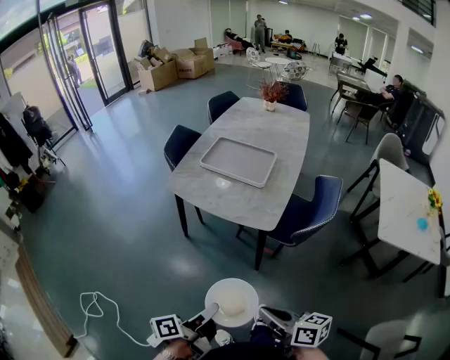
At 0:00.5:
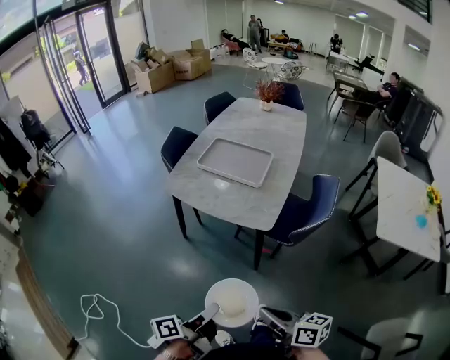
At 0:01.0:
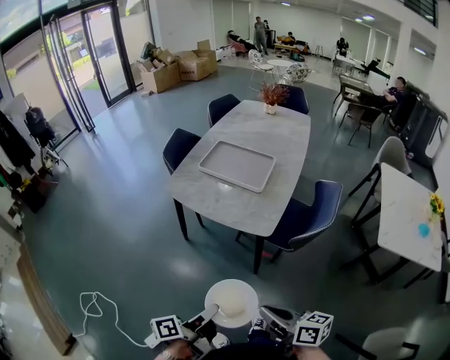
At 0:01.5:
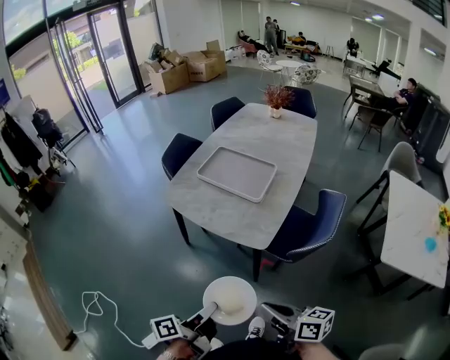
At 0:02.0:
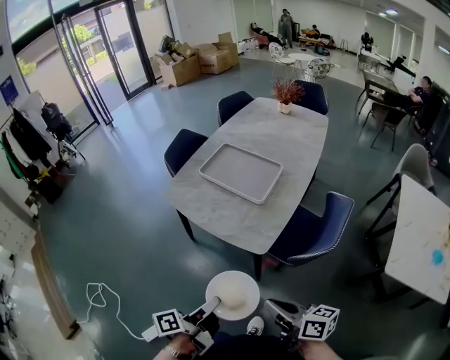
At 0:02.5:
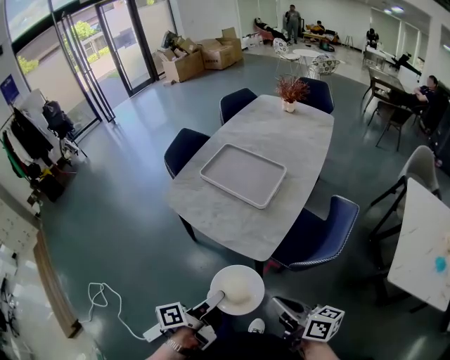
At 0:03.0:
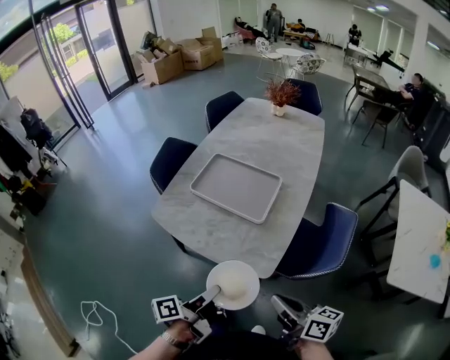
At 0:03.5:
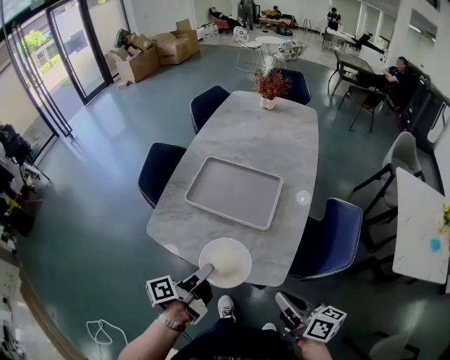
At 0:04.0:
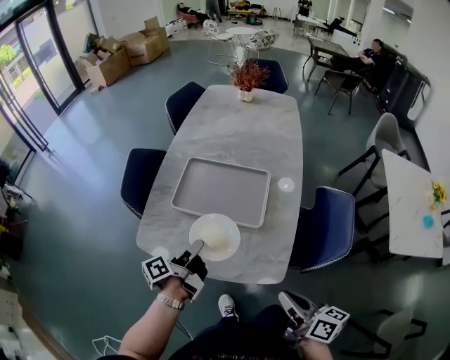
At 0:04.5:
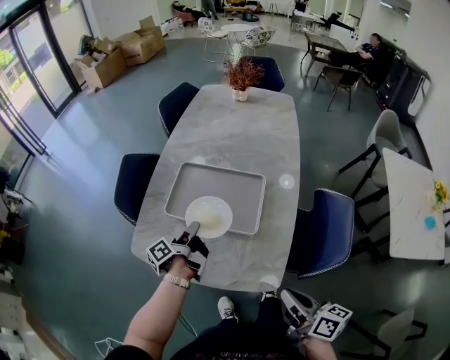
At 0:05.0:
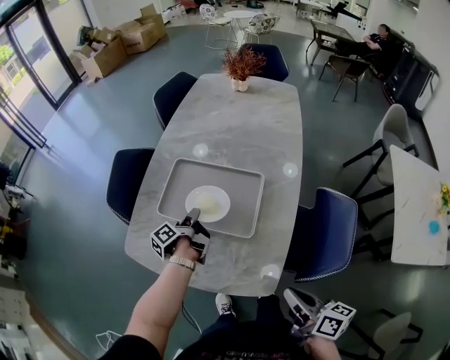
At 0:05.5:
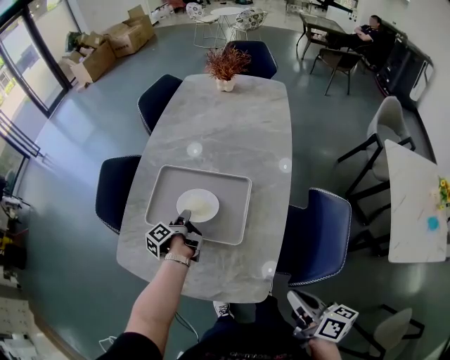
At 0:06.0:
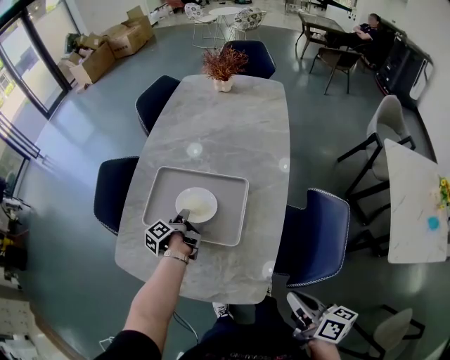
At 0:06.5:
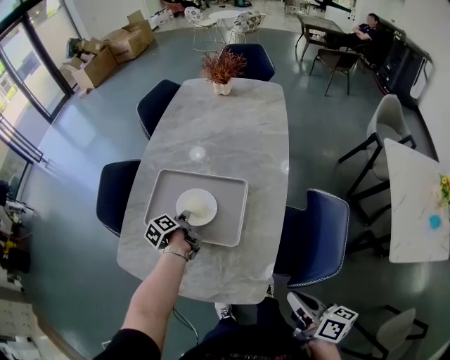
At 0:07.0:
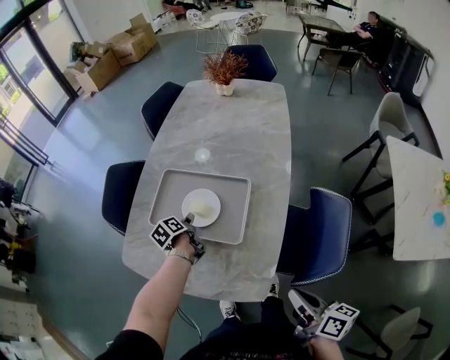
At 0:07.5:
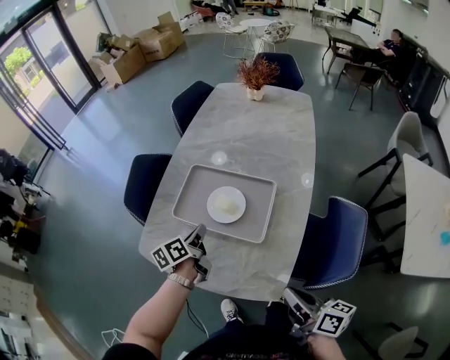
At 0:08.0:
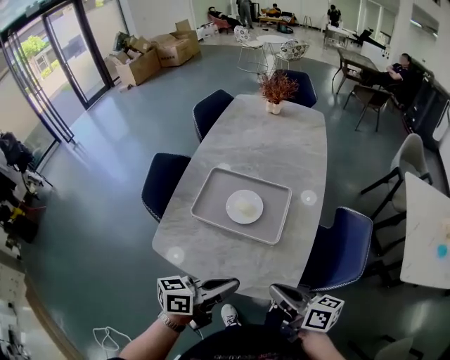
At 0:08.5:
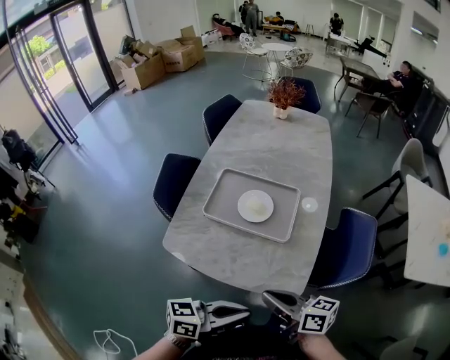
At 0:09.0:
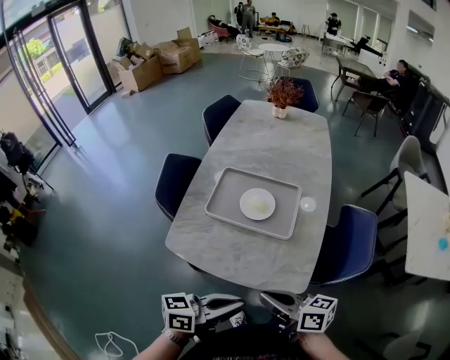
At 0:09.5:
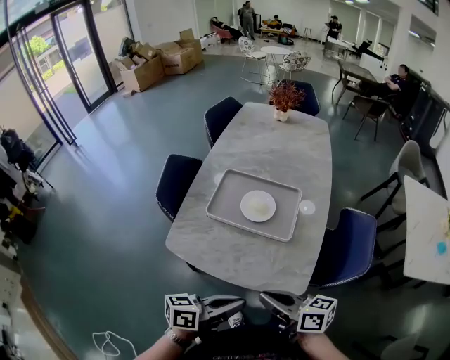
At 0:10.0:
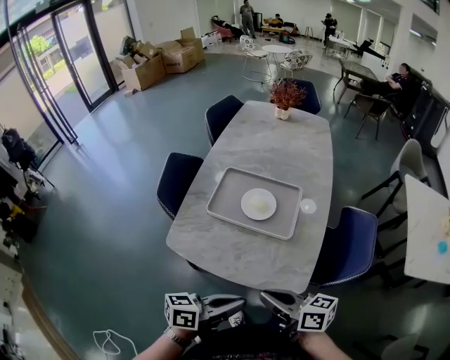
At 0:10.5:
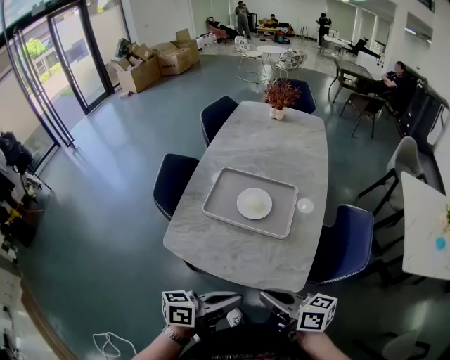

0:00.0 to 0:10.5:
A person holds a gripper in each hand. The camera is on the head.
0:00.0 to 0:02.0: The right gripper ends up approximately 15 cm from where it was.
0:02.0 to 0:04.0: The right gripper ends up some 20 cm from where it was, and changes its angle by roughly 30 degrees.
0:04.0 to 0:06.5: The right gripper moves about 15 cm.
0:06.5 to 0:08.5: The right gripper moves approximately 25 cm, and turns by approximately 30 degrees.

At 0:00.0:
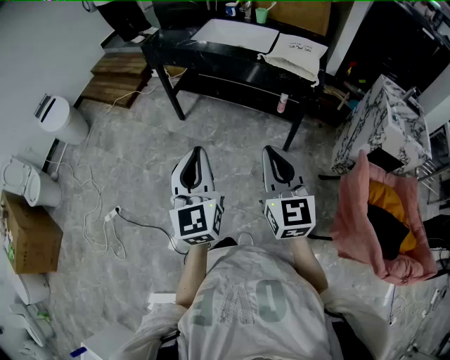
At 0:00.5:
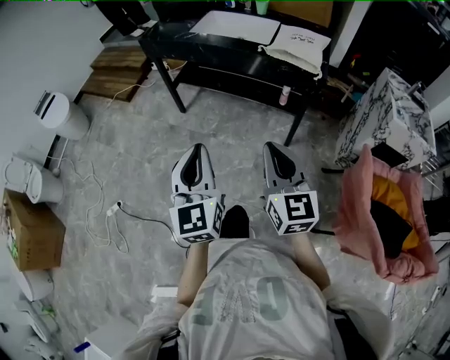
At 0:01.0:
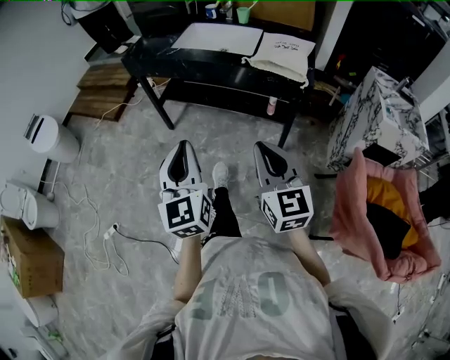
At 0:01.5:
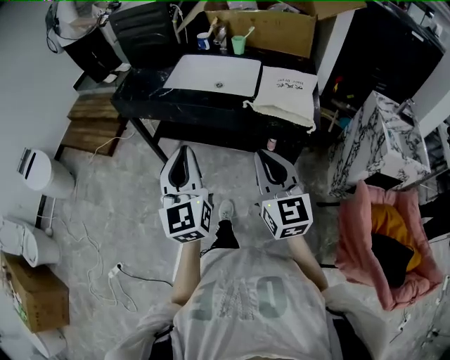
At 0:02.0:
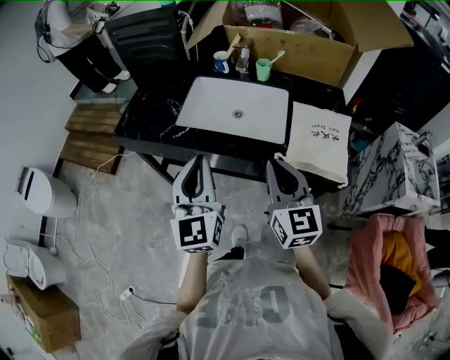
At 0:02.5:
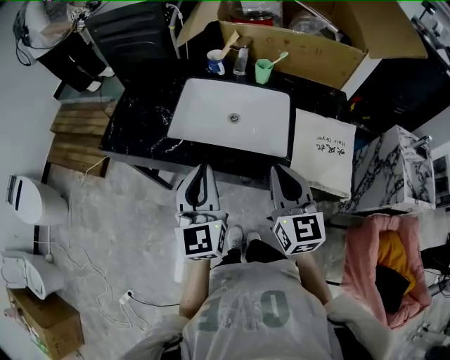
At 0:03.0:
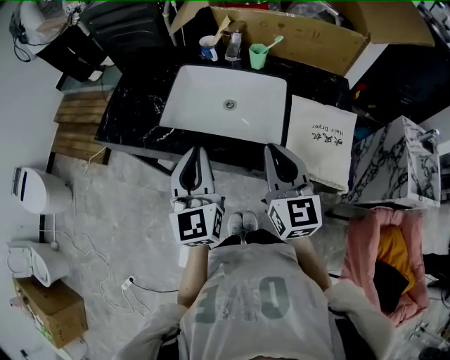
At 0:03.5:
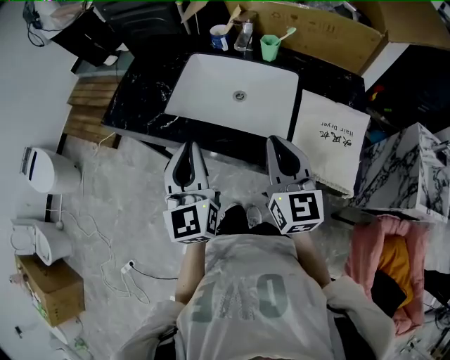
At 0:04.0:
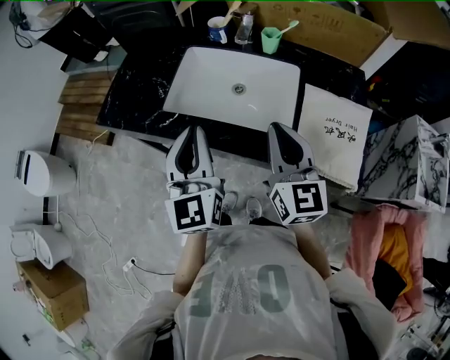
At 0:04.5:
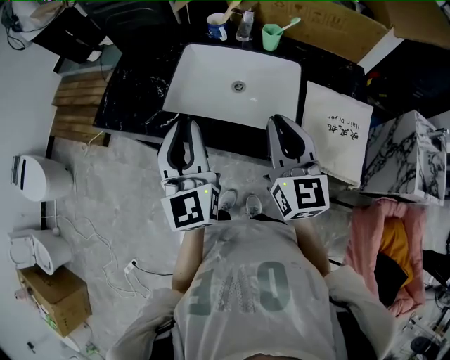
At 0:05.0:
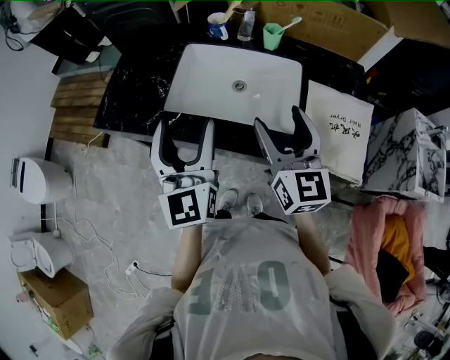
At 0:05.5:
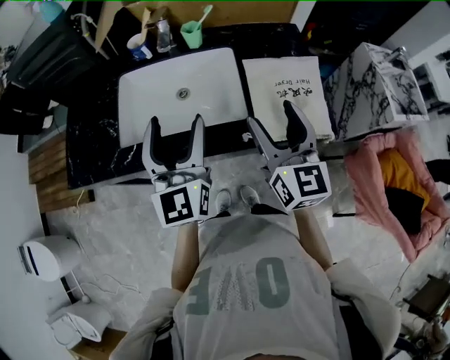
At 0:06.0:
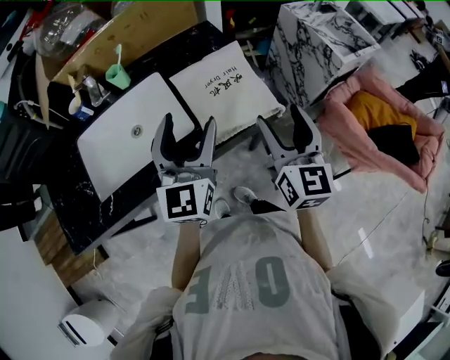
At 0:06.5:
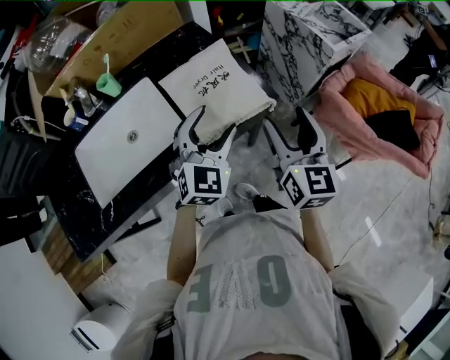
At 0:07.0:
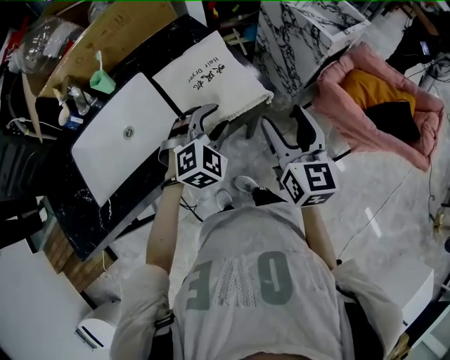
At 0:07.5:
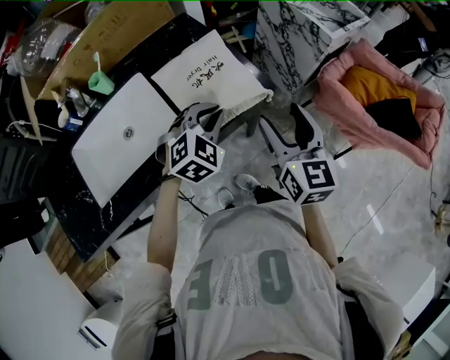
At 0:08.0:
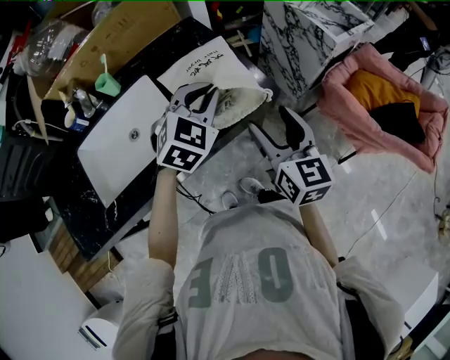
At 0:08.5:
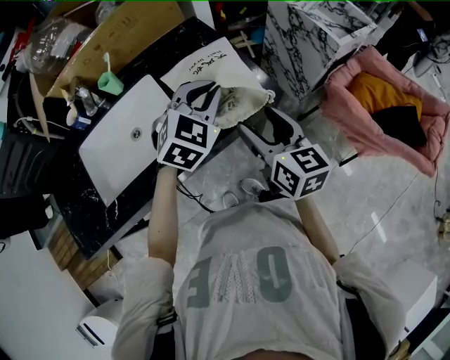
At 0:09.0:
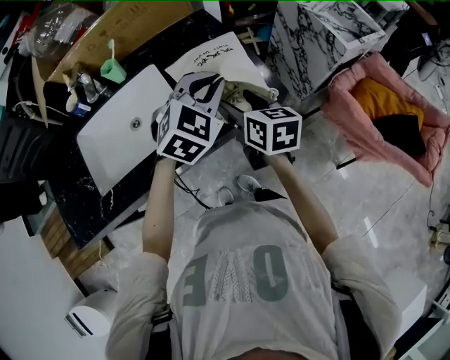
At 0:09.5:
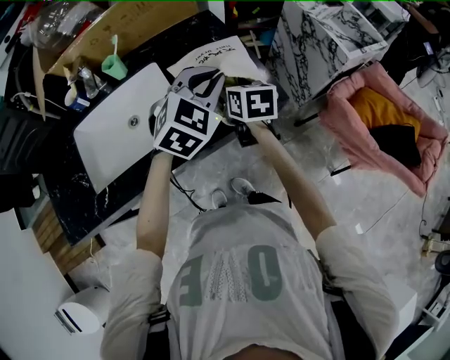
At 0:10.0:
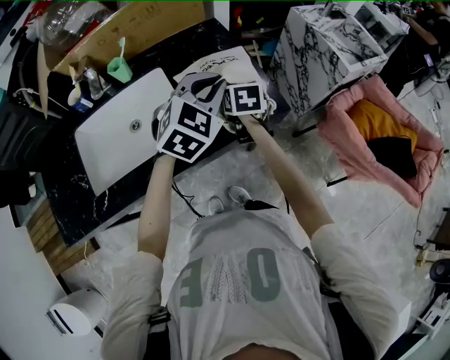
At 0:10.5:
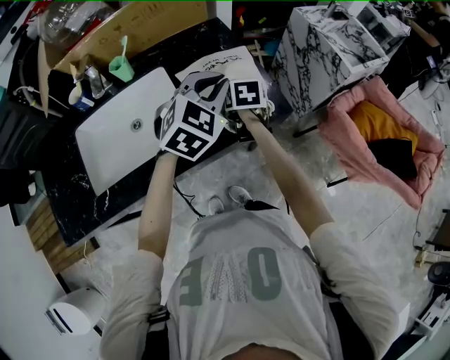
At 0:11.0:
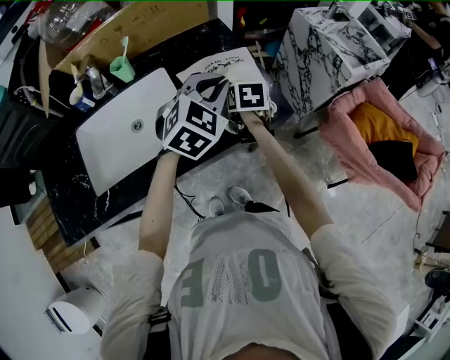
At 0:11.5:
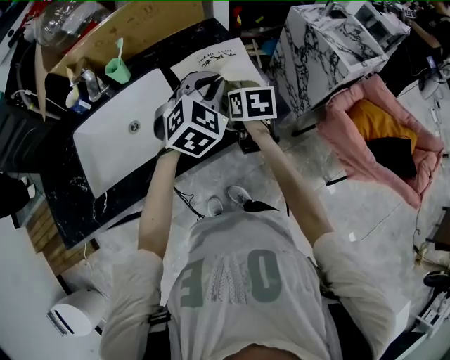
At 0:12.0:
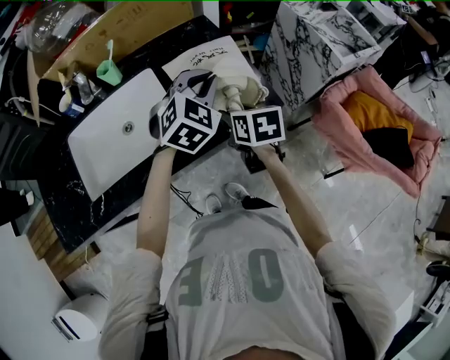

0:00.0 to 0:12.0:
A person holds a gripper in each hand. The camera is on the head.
0:00.0 to 0:02.0: Both grippers are carried forward, approximately 50 cm.
0:02.0 to 0:04.0: Both grippers move forward, roughly 10 cm.
0:04.0 to 0:06.0: The right gripper ends up approximately 25 cm from where it was, rotates about 50 degrees, and opens its fingers. The left gripper moves some 25 cm, rotates about 50 degrees, and opens.
0:06.0 to 0:08.0: The left gripper moves forward, to the right and downward, approximately 15 cm, tips its fingers downward by approximately 30 degrees, and closes.
0:08.0 to 0:10.0: The right gripper moves forward, to the left and downward, some 25 cm, and turns by some 30 degrees.
0:10.0 to 0:12.0: The right gripper is displaced backward by about 10 cm.

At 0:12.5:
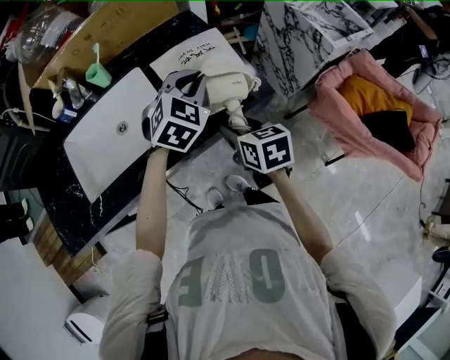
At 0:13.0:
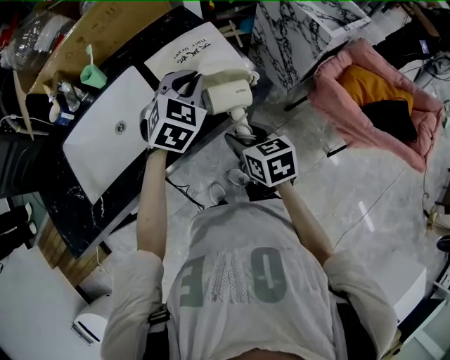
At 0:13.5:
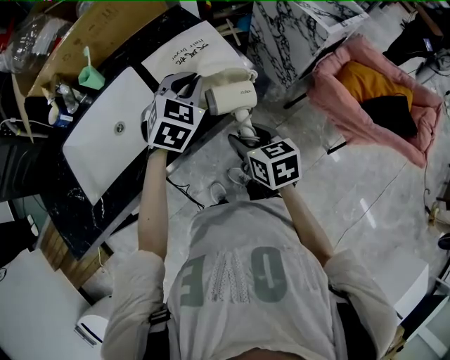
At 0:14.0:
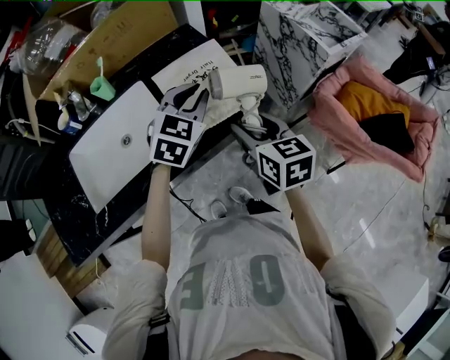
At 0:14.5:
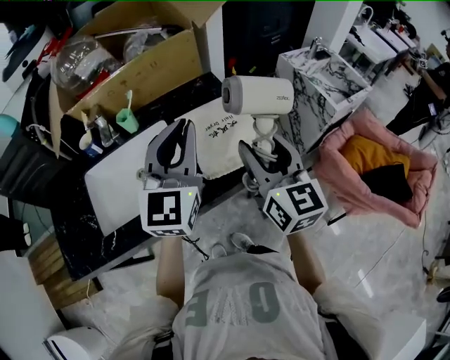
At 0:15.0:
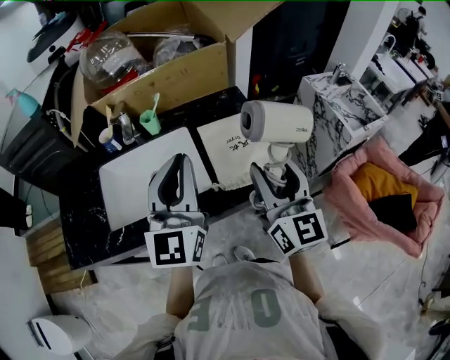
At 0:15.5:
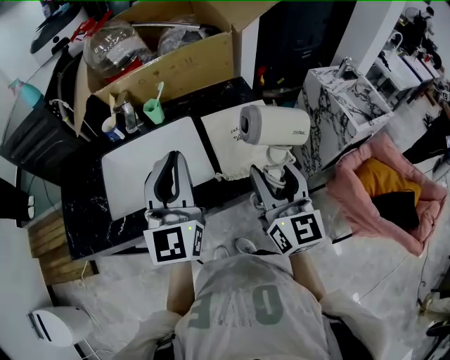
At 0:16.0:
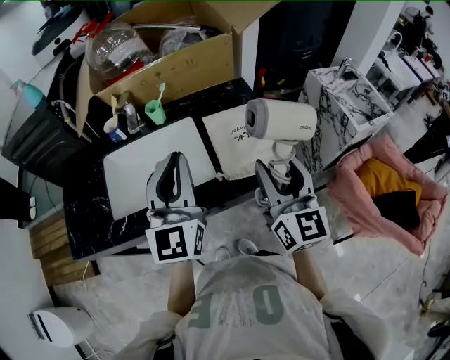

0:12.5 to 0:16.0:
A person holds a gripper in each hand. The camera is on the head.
0:12.5 to 0:14.5: The two grippers go roughly 20 cm upward. The right gripper tips its fingers upward by roughly 40 degrees. Meanwhile the left gripper tips its fingers upward by approximately 40 degrees.
0:14.5 to 0:16.0: The left gripper travels to the left and backward by about 10 cm.

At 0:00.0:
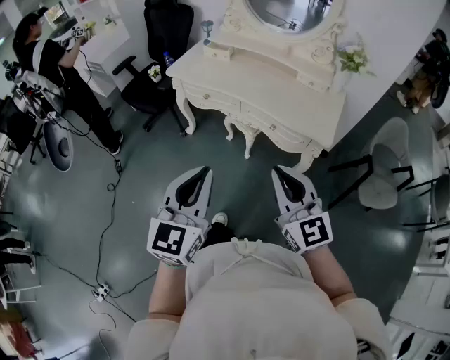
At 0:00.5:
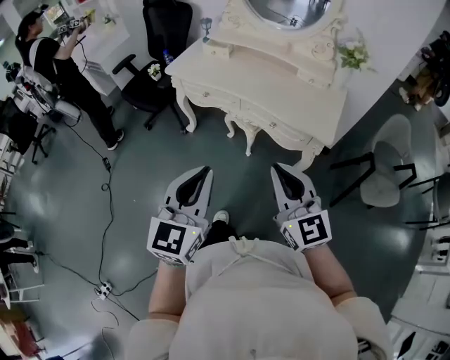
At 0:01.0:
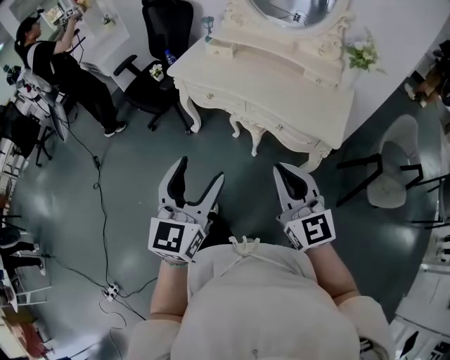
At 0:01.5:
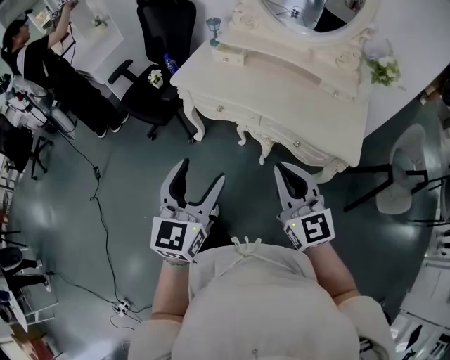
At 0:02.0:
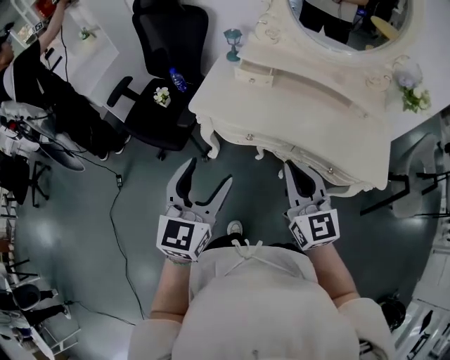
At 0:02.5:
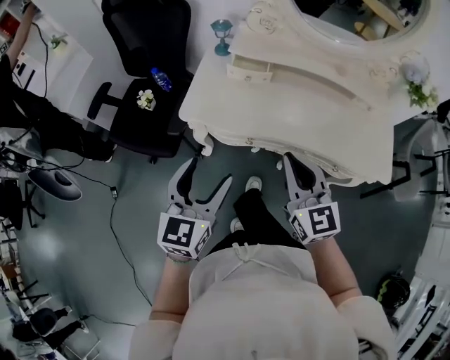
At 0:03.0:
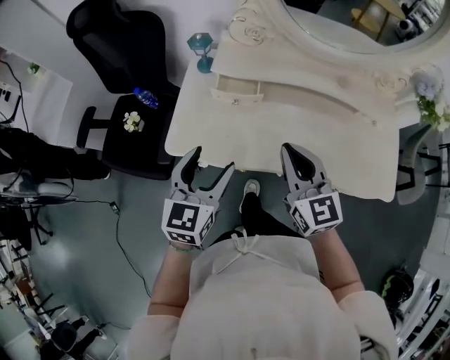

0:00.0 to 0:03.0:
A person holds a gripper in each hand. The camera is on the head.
0:00.0 to 0:01.5: The grippers both shift forward and to the left by some 20 cm. The left gripper opens its fingers.
0:01.5 to 0:03.0: The two grippers travel together, forward, about 40 cm. The left gripper turns by some 20 degrees, while the right gripper turns by roughly 20 degrees.
